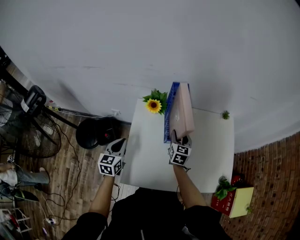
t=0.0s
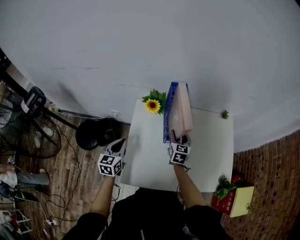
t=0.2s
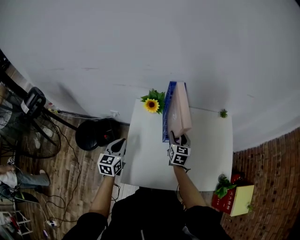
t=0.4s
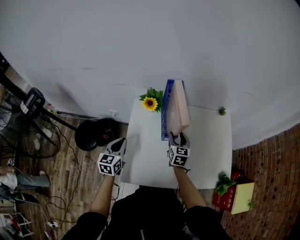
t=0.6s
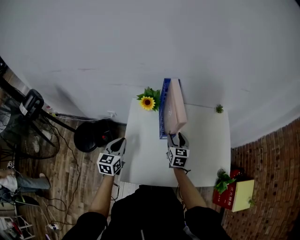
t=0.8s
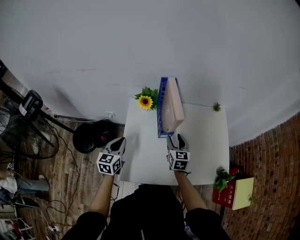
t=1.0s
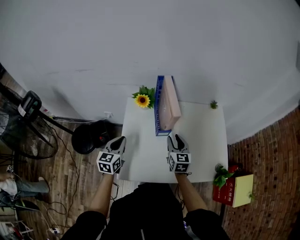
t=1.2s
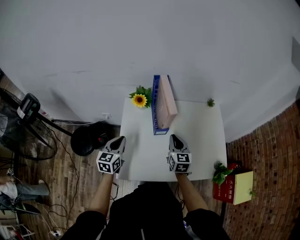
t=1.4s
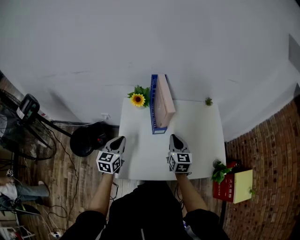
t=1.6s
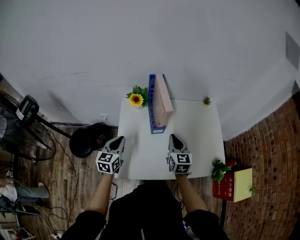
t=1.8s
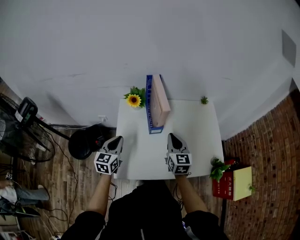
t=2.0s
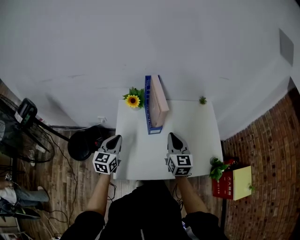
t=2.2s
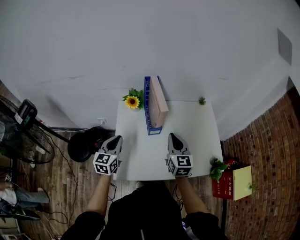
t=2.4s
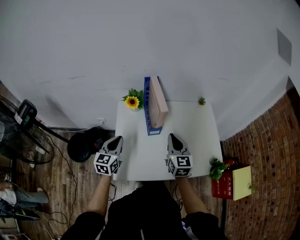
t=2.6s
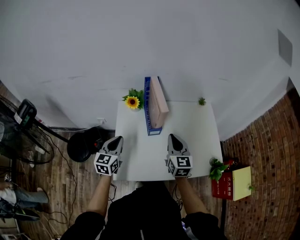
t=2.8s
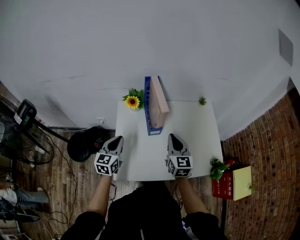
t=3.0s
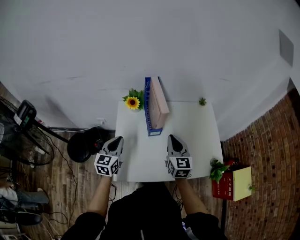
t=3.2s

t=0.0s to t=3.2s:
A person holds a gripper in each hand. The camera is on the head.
t=0.0s to t=1.6s: The right gripper is displaced backward and upward by about 15 cm, and closes; the left gripper travels to the right by some 5 cm.
t=1.6s to t=3.2s: The right gripper travels upward by roughly 5 cm.

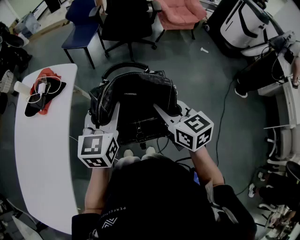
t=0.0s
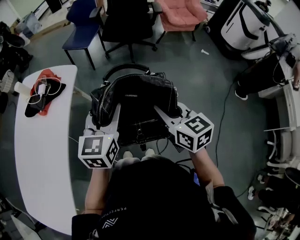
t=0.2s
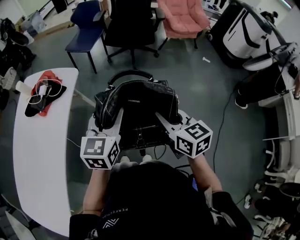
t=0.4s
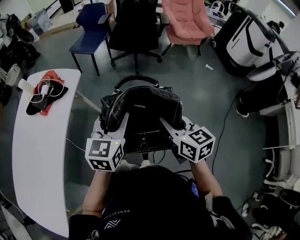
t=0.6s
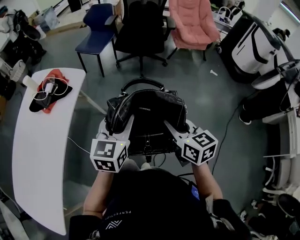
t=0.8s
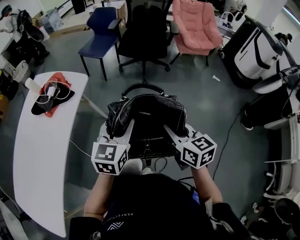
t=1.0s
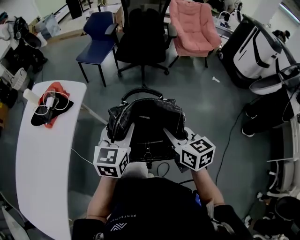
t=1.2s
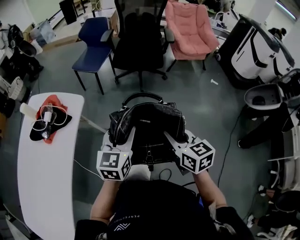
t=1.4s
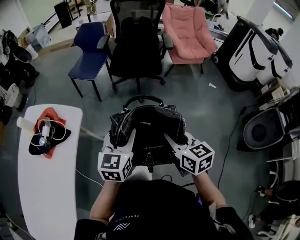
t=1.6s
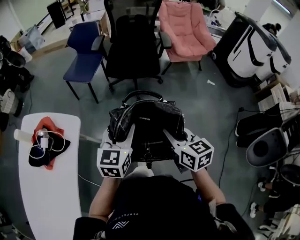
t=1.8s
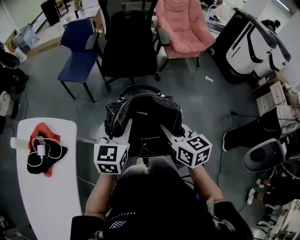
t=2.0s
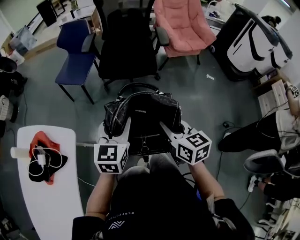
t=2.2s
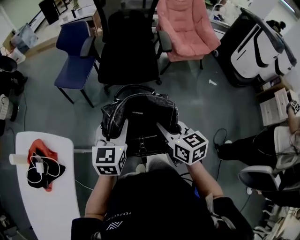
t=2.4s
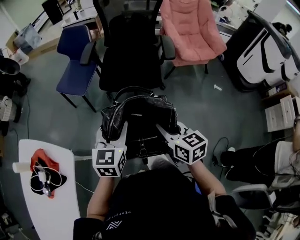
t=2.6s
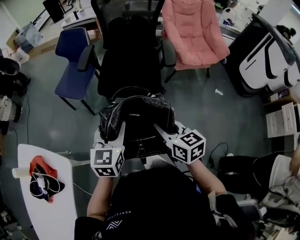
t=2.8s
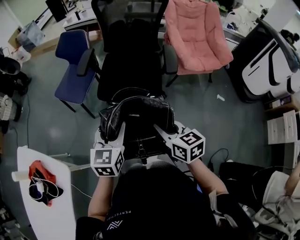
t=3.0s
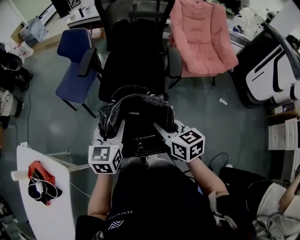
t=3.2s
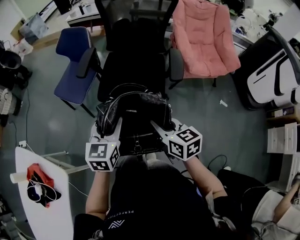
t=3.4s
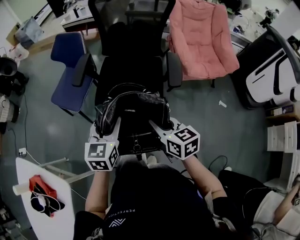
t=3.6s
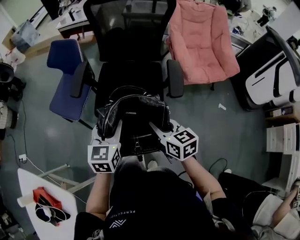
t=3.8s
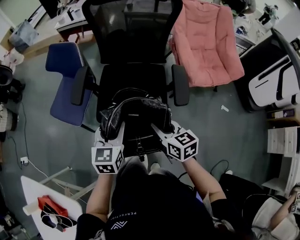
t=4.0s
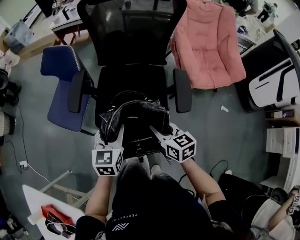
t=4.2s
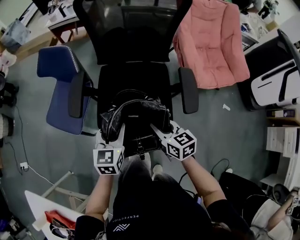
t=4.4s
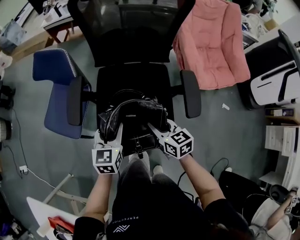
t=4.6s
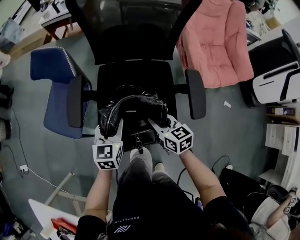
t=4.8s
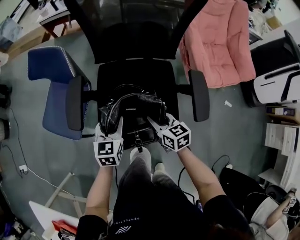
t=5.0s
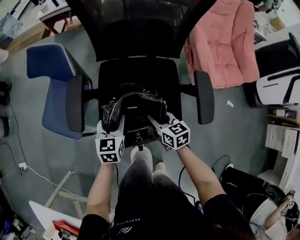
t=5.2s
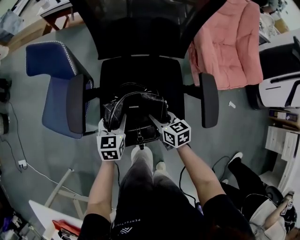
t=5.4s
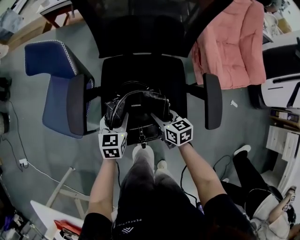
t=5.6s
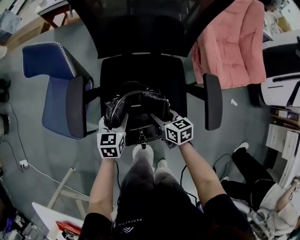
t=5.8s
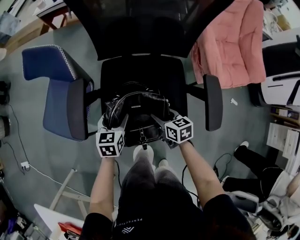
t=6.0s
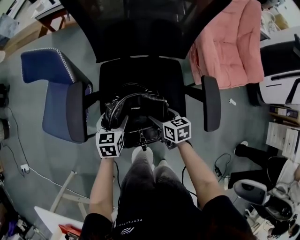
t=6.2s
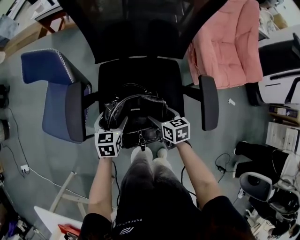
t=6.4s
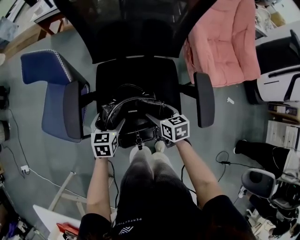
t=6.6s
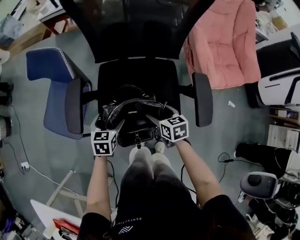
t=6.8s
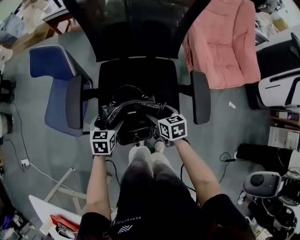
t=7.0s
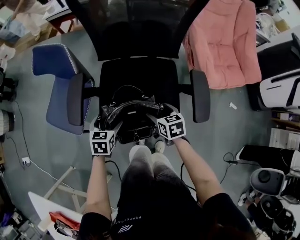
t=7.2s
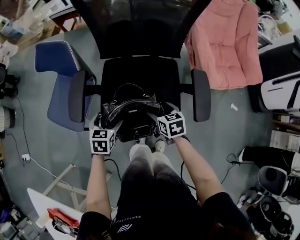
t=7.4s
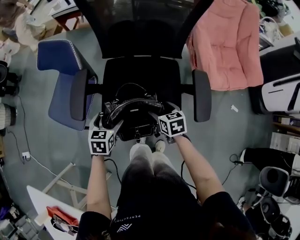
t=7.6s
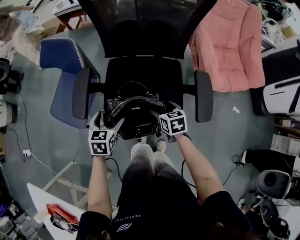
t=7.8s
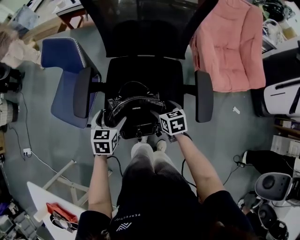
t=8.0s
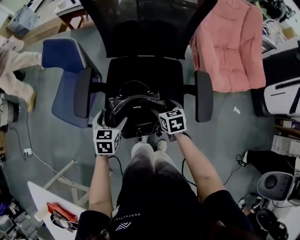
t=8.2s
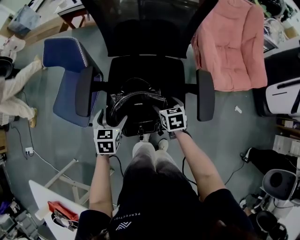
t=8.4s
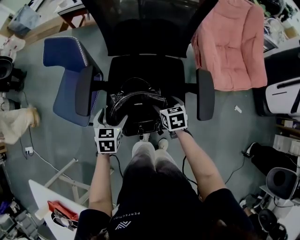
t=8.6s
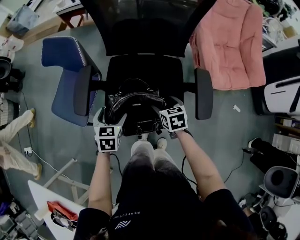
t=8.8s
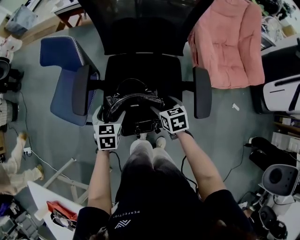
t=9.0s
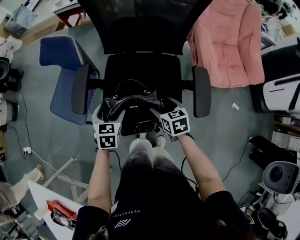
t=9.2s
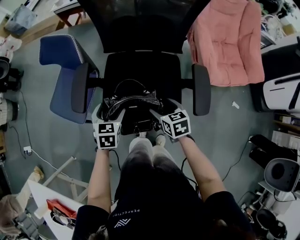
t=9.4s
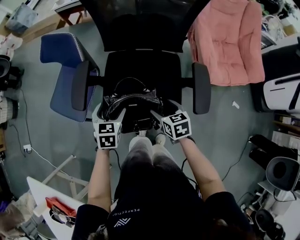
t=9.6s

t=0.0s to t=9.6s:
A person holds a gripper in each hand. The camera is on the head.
t=0.0s to t=1.6s: Both grippers move forward and to the right, about 15 cm.
t=1.6s to t=3.2s: Both grippers move forward, approximately 40 cm.
t=3.2s to t=4.8s: The grippers both shift forward and downward by approximately 35 cm.
t=4.8s to t=6.4s: Both grippers travel together downward and forward, about 10 cm. The left gripper opens up. Meanwhile the right gripper opens.
t=6.4s to t=8.0s: The left gripper goes roughly 10 cm upward and backward.
t=8.0s to t=9.6s: The grippers move only a little.

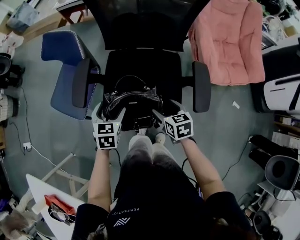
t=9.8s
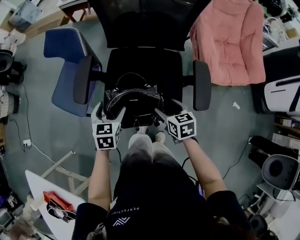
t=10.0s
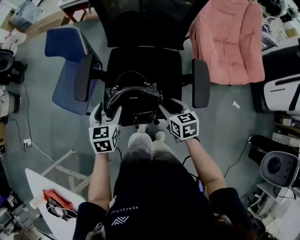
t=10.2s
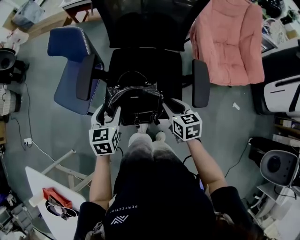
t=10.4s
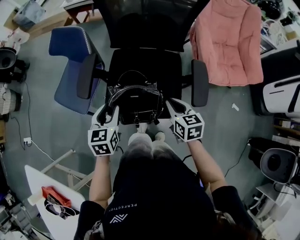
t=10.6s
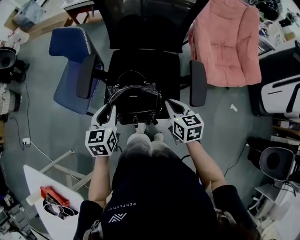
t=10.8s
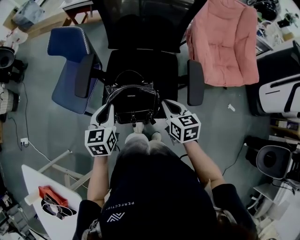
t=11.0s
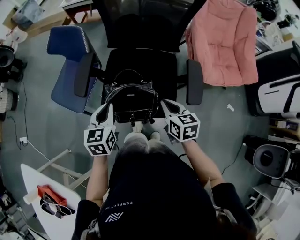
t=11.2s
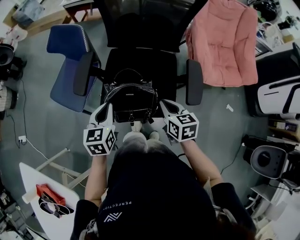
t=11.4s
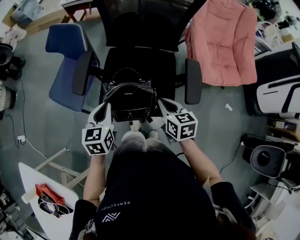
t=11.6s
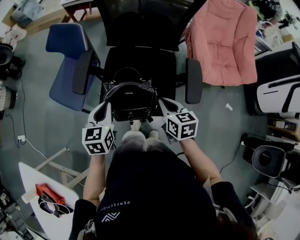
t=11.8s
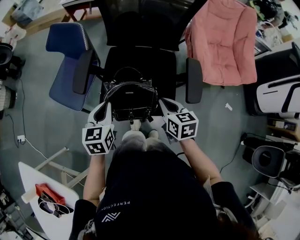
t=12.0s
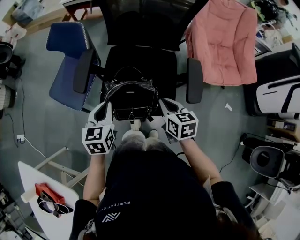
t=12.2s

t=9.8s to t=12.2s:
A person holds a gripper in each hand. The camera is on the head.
t=9.8s to t=11.0s: The two grippers go about 10 cm upward. The left gripper closes up. Meanwhile the right gripper closes its fingers.
t=11.0s to t=12.2s: The two grippers keep their place.

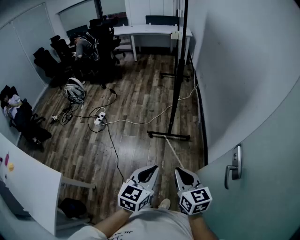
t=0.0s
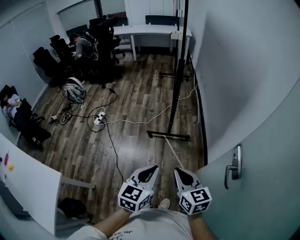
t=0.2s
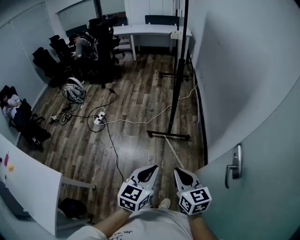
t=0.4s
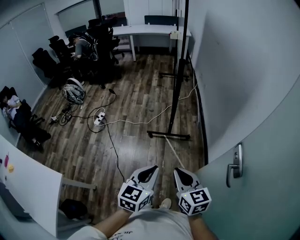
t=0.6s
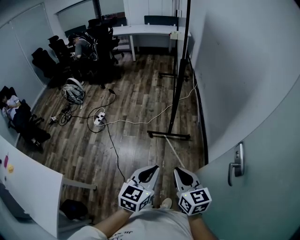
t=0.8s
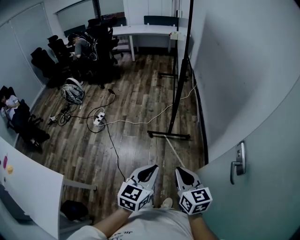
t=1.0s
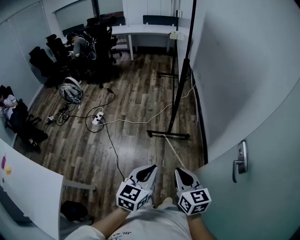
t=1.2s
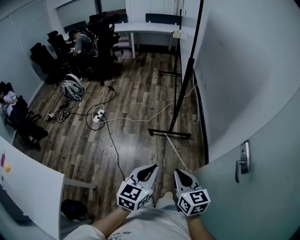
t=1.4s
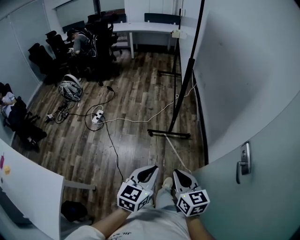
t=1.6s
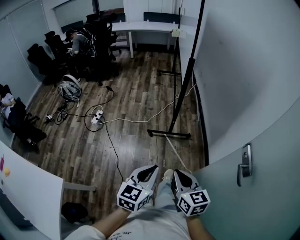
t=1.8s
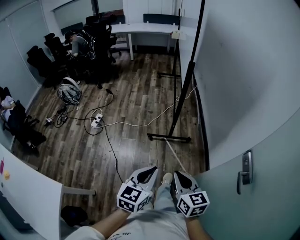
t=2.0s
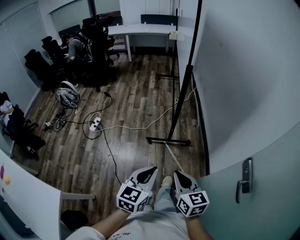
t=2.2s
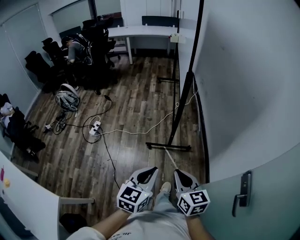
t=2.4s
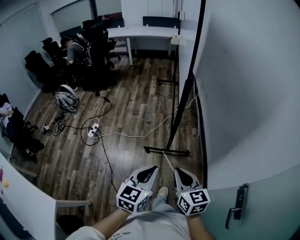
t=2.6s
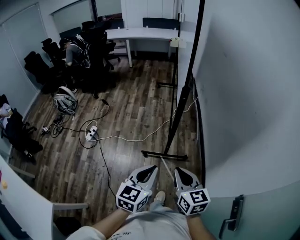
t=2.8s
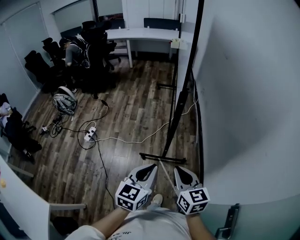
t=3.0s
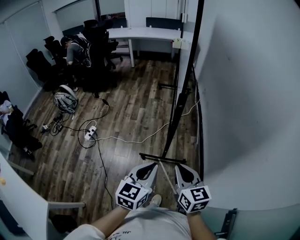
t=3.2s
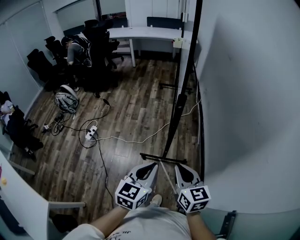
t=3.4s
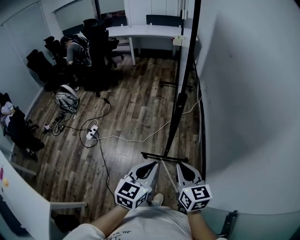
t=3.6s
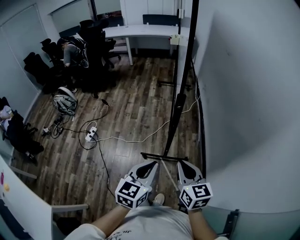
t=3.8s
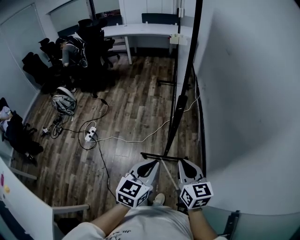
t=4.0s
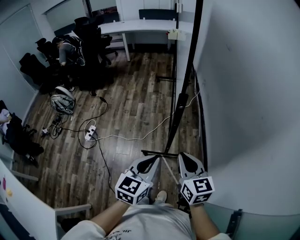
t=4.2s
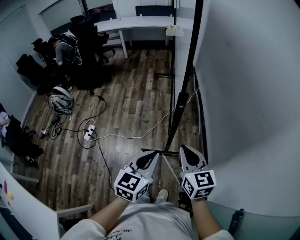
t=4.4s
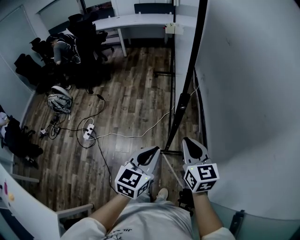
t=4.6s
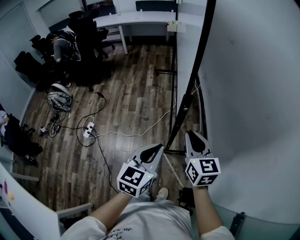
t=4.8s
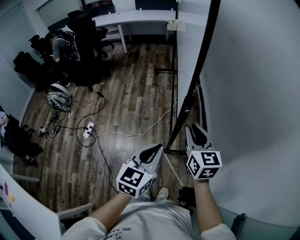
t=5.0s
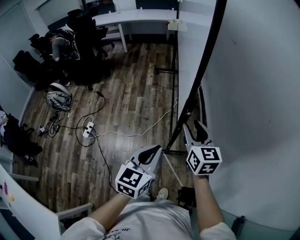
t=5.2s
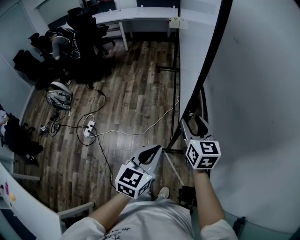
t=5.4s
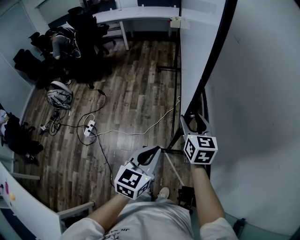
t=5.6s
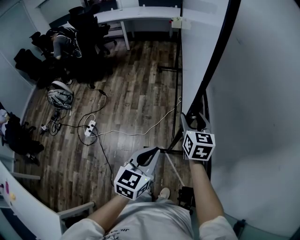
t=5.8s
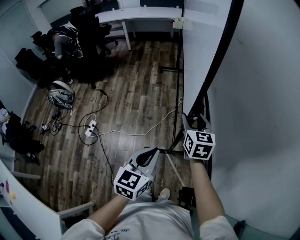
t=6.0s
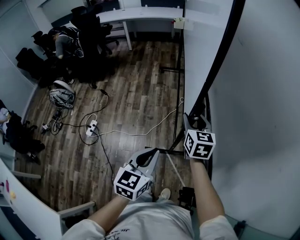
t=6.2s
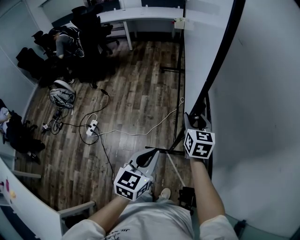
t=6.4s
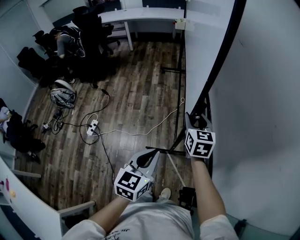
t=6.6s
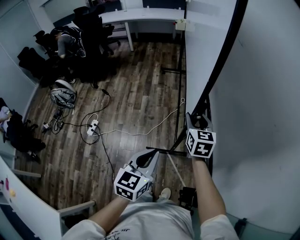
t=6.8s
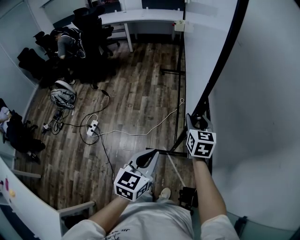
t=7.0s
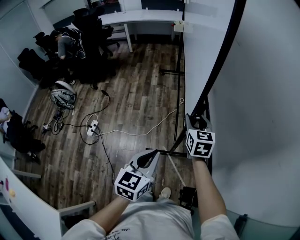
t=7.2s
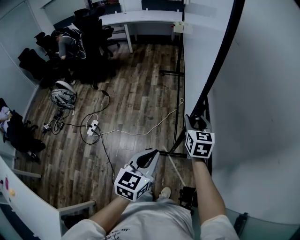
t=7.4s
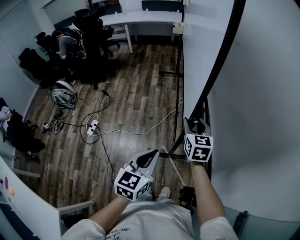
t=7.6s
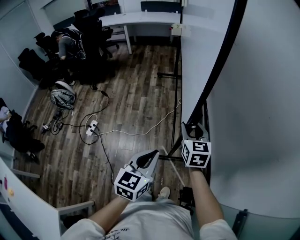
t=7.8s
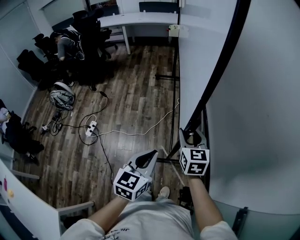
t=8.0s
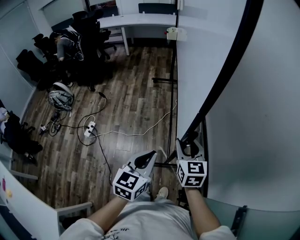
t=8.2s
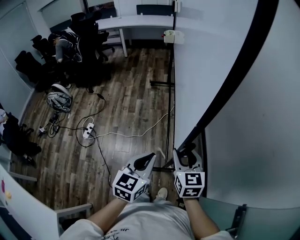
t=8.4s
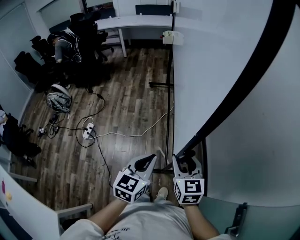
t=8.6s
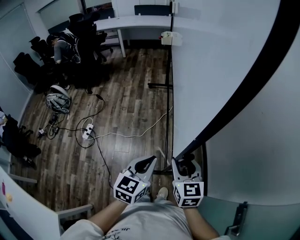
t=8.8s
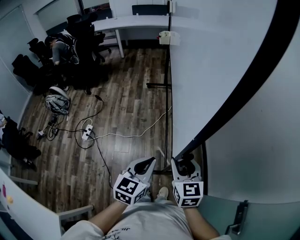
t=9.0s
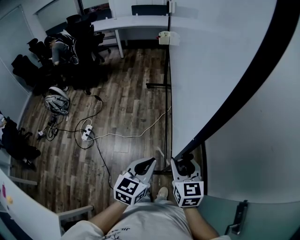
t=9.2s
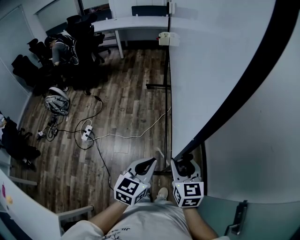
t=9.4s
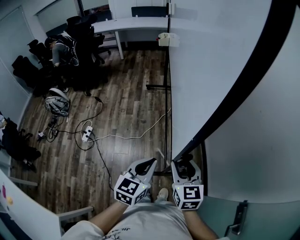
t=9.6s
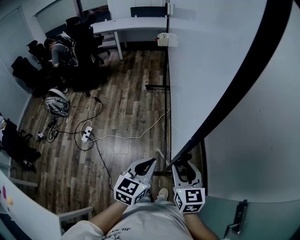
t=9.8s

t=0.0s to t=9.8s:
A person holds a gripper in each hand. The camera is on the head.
t=0.0s to t=1.4s: Both grippers move to the left, about 10 cm.
t=1.4s to t=2.8s: The grippers both shift forward by roughly 30 cm.
t=2.8s to t=4.2s: The two grippers go some 15 cm forward.
t=4.2s to t=5.6s: The left gripper goes about 10 cm forward. Meanwhile the right gripper heads forward, covering roughly 20 cm, and opens its fingers.
t=5.6s to t=7.0s: The grippers make only small movements.
t=7.0s to t=8.4s: The left gripper goes roughly 5 cm backward. Meanwhile the right gripper travels backward by approximately 20 cm.
t=8.4s to t=9.8s: The right gripper is displaced backward by some 5 cm.
